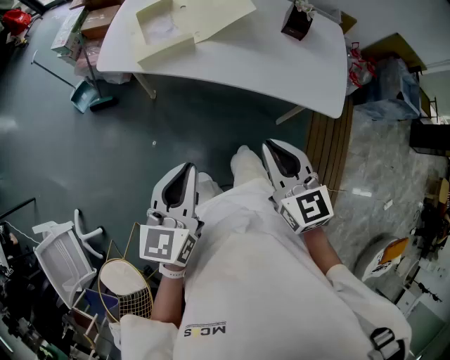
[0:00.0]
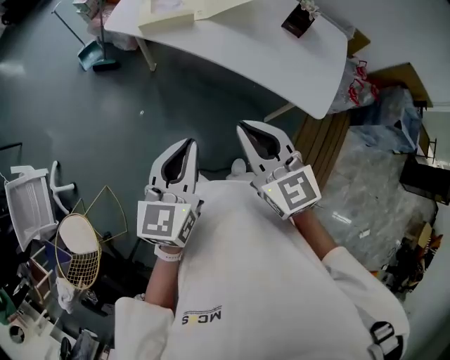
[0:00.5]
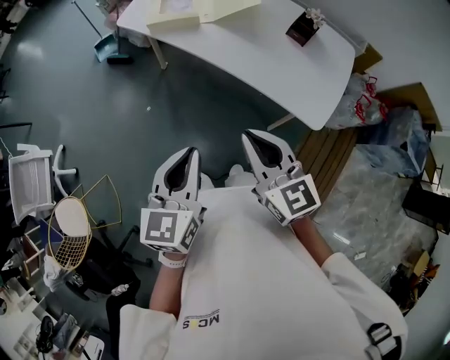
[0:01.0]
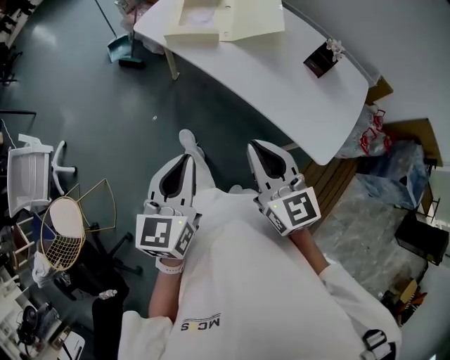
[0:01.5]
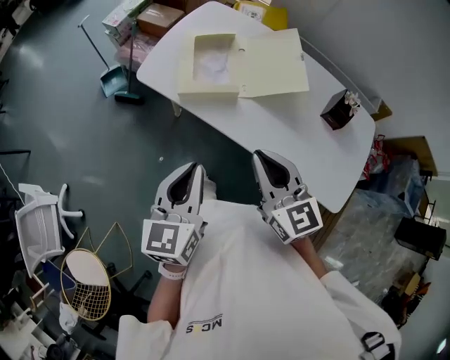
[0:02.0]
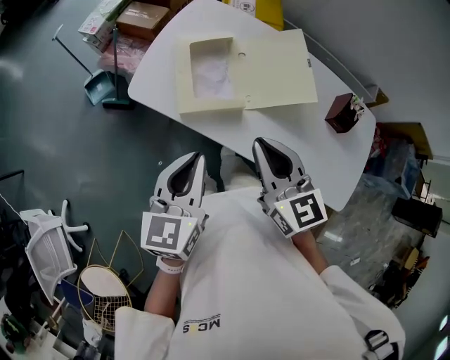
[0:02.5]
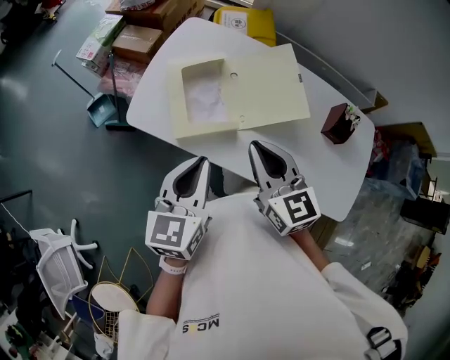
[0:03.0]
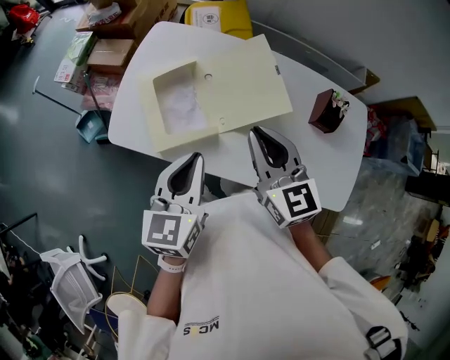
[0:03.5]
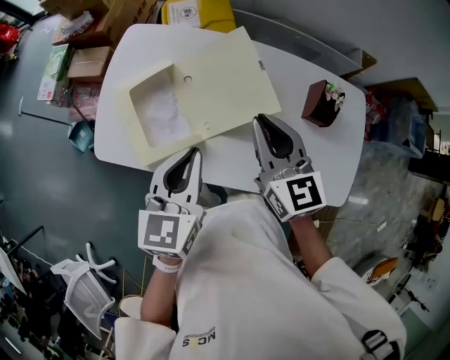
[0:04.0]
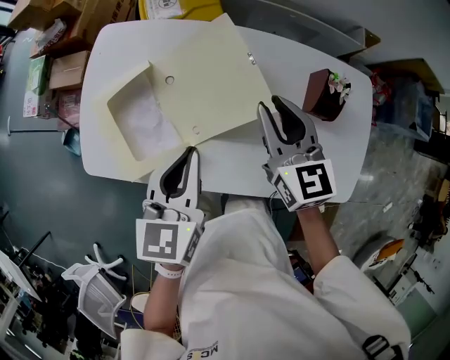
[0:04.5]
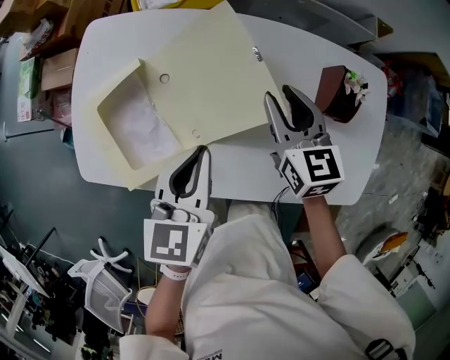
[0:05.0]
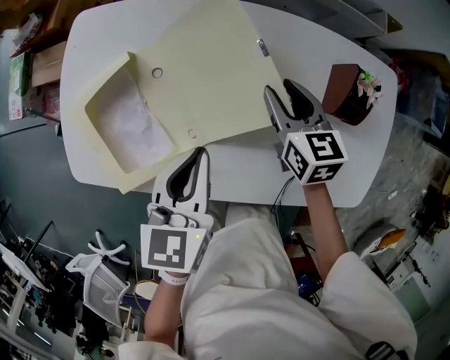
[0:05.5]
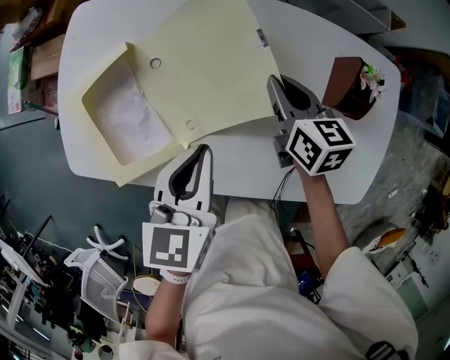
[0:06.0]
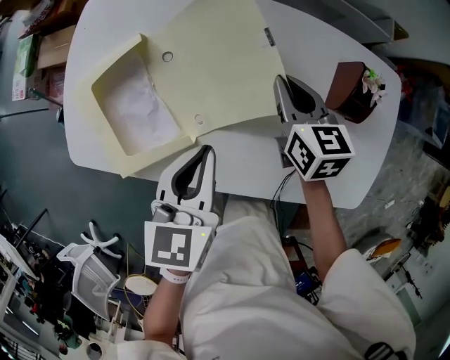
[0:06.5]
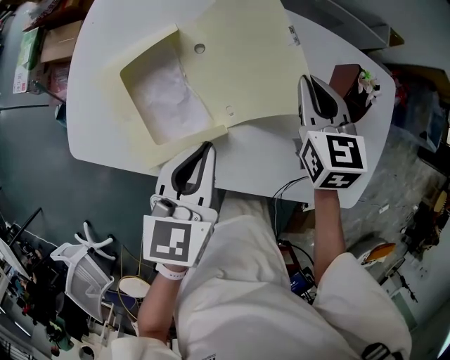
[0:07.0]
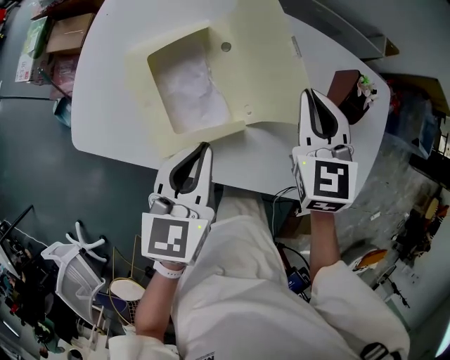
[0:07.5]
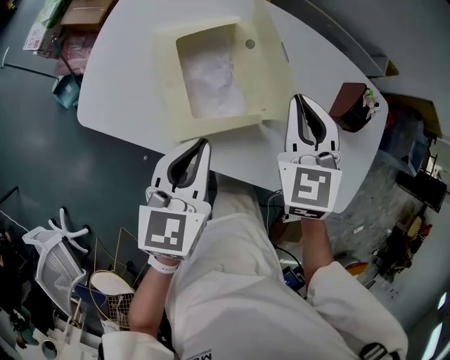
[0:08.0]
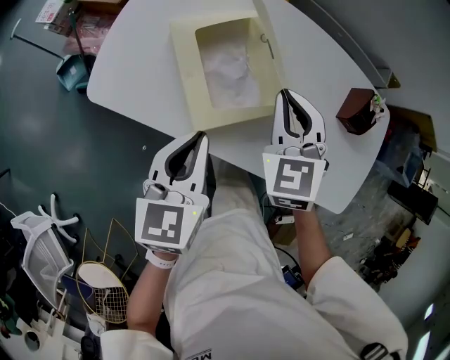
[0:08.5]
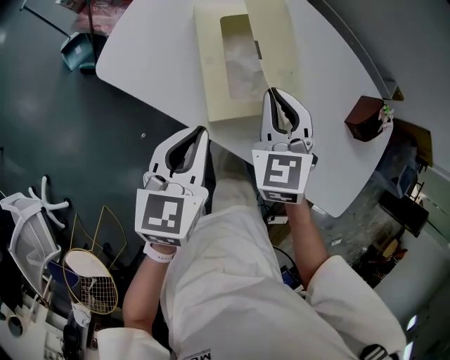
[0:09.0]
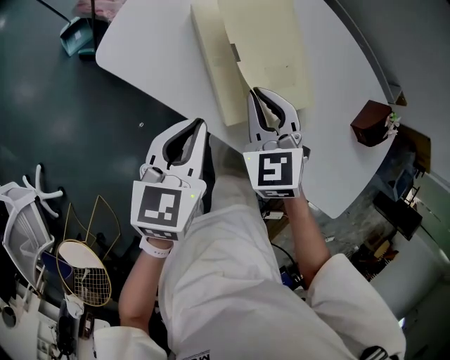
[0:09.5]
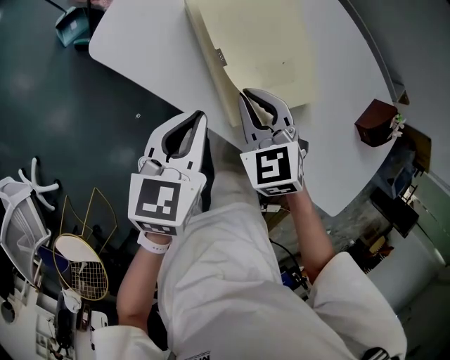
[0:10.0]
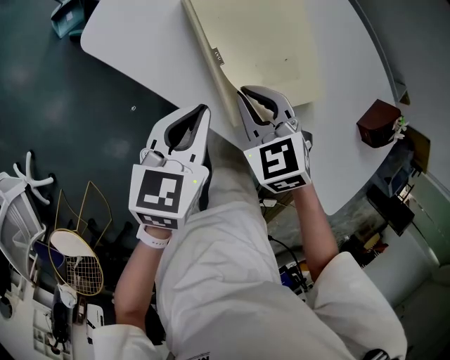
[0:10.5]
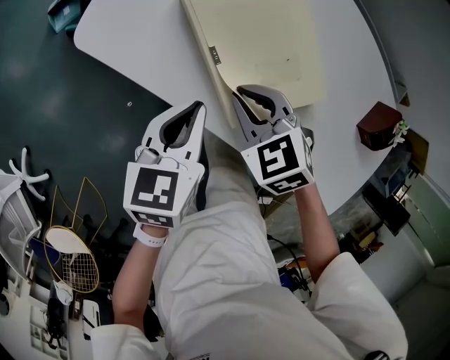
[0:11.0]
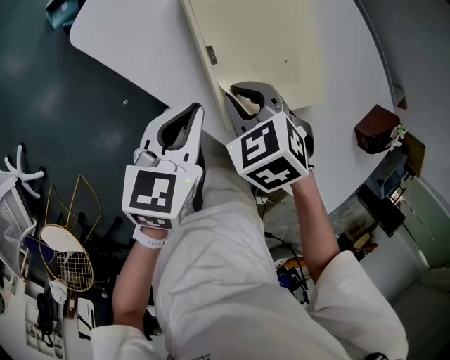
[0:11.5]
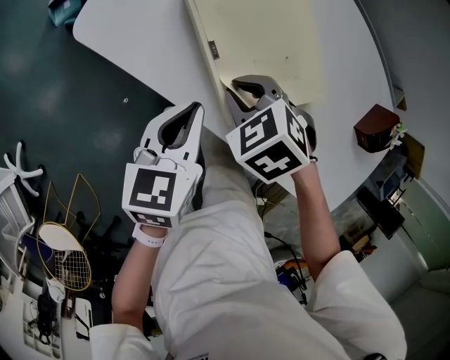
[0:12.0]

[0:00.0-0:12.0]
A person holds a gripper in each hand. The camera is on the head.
0:00.0 to 0:02.0: The right gripper ends up about 20 cm from where it was. Meanwhile the left gripper ends up some 20 cm from where it was.
0:02.0 to 0:04.0: The two grippers go about 25 cm forward. The right gripper changes its angle by some 20 degrees, while the left gripper rotates some 20 degrees.
0:04.0 to 0:06.0: The right gripper travels downward and forward by some 25 cm, turns by some 30 degrees, and opens, then closes once more. Meanwhile the left gripper is displaced downward, to the right and forward by roughly 15 cm.
0:06.0 to 0:08.0: The right gripper travels upward, to the left and backward by approximately 20 cm, and rolls counterclockwise, seen from behind, by roughly 40 degrees, while the left gripper is displaced to the left and backward by about 10 cm.
0:08.0 to 0:10.0: The left gripper travels to the left and downward by about 15 cm. Meanwhile the right gripper moves to the left, downward and backward, roughly 25 cm, and turns by approximately 40 degrees.
0:10.0 to 0:12.0: The right gripper shifts by approximately 5 cm, and rotates approximately 30 degrees.

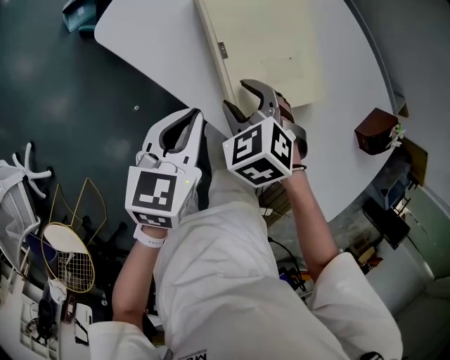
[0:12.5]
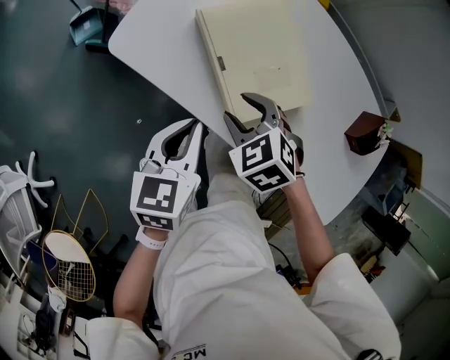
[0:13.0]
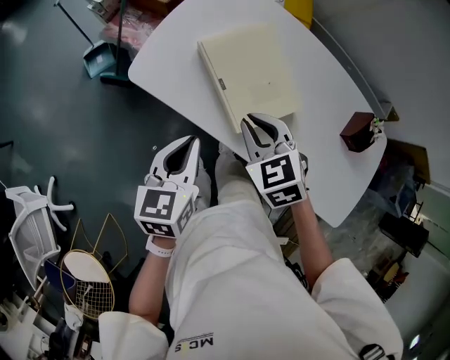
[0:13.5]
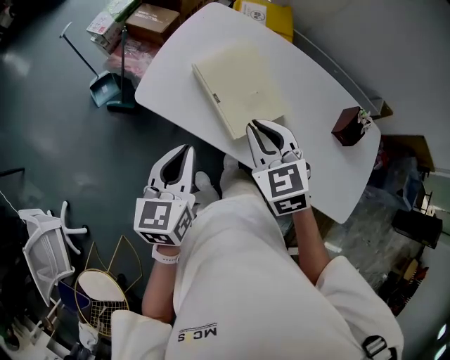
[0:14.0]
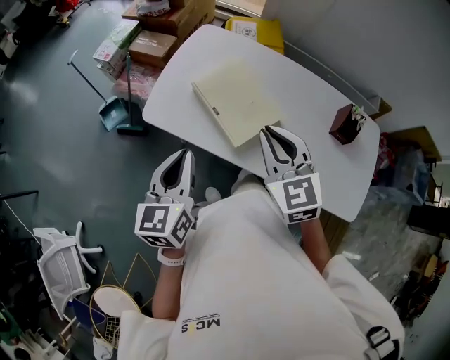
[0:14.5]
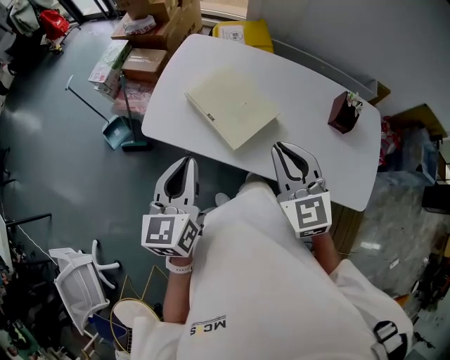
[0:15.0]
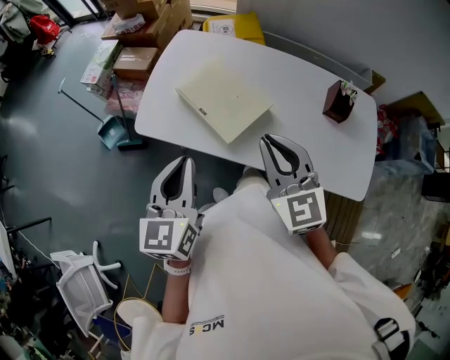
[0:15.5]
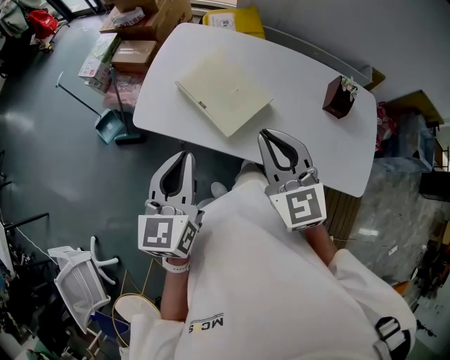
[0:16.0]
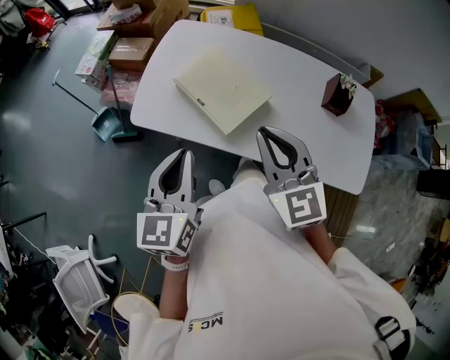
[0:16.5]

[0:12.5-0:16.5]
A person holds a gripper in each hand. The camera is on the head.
0:12.5 to 0:14.5: Both grippers travel together upward, approximately 25 cm. The right gripper tilts its fingers roughly 40 degrees upward, and closes up. The left gripper swivels roughly 20 degrees.
0:14.5 to 0:16.5: The left gripper changes place by some 5 cm; the right gripper ends up roughly 5 cm from where it was.

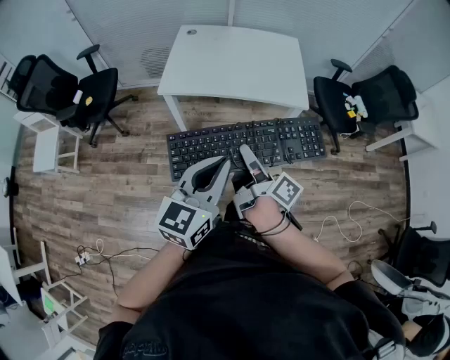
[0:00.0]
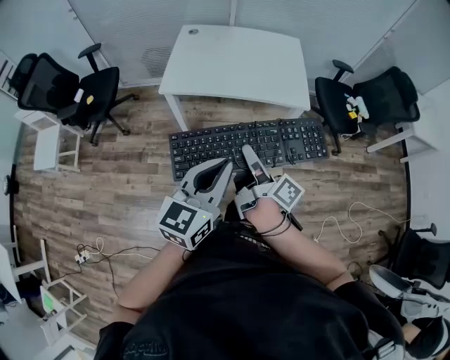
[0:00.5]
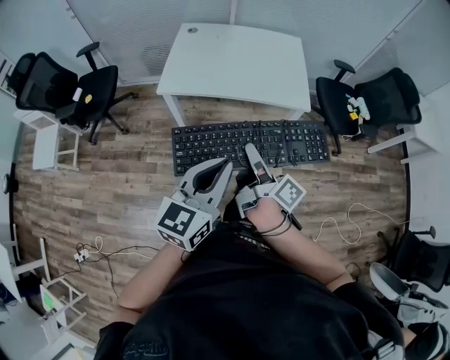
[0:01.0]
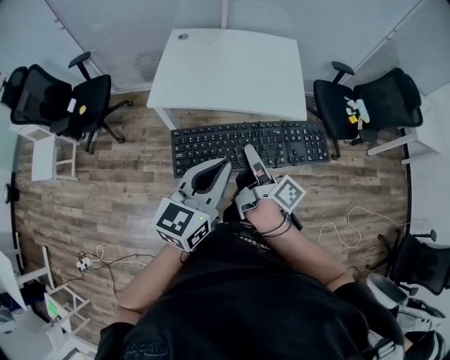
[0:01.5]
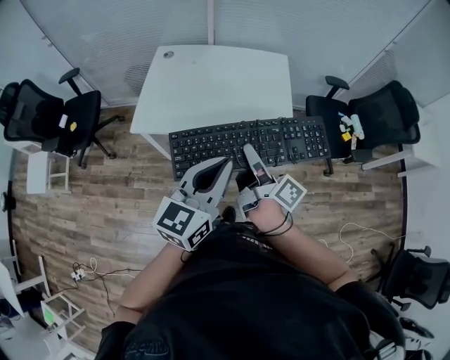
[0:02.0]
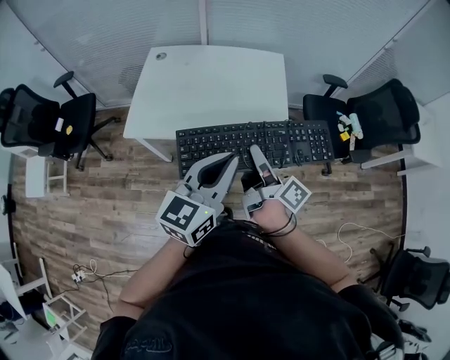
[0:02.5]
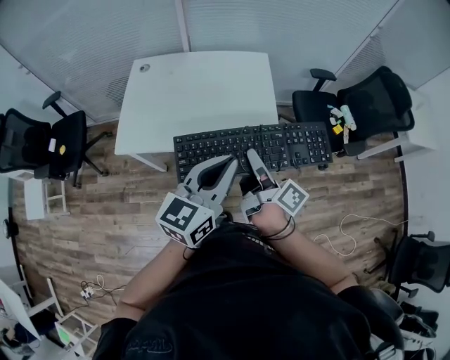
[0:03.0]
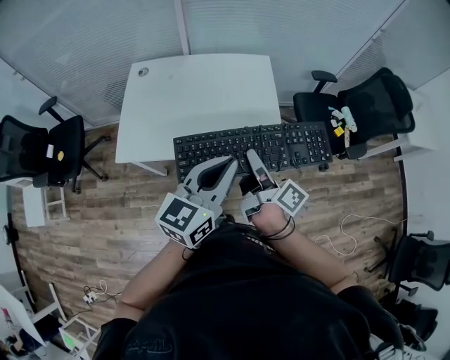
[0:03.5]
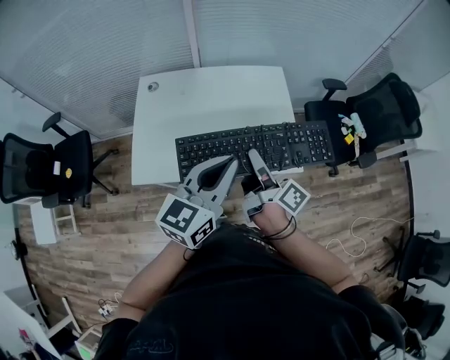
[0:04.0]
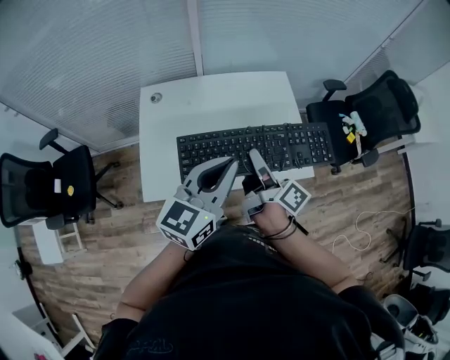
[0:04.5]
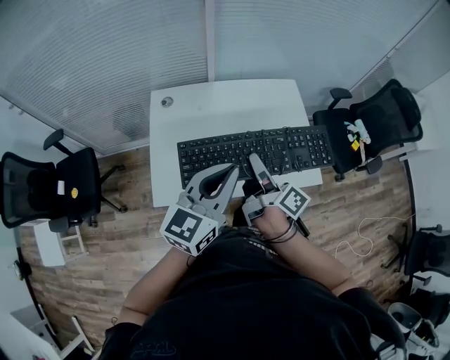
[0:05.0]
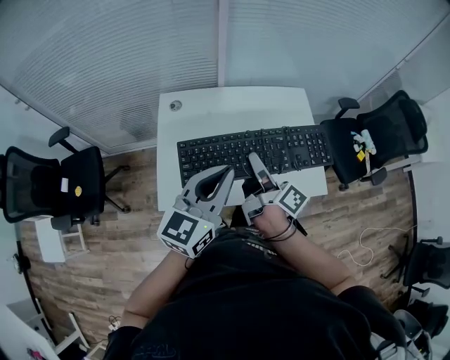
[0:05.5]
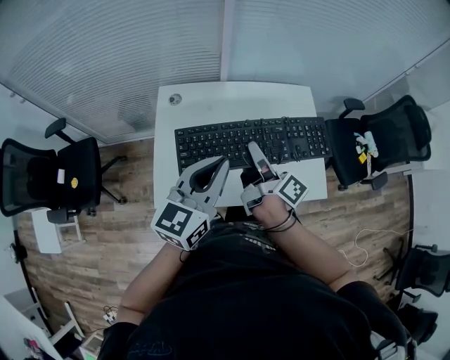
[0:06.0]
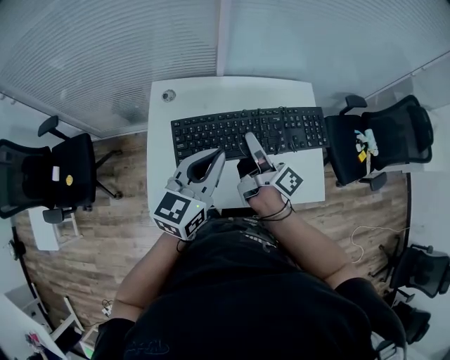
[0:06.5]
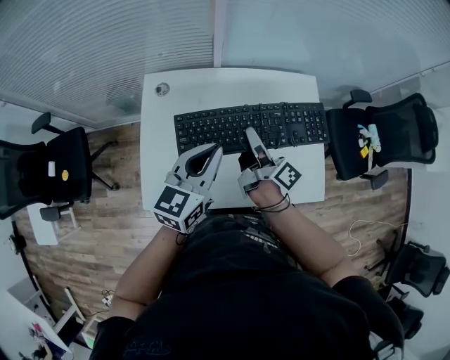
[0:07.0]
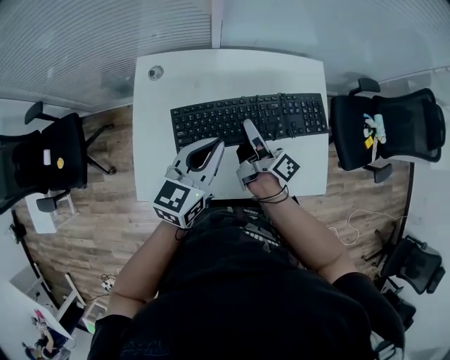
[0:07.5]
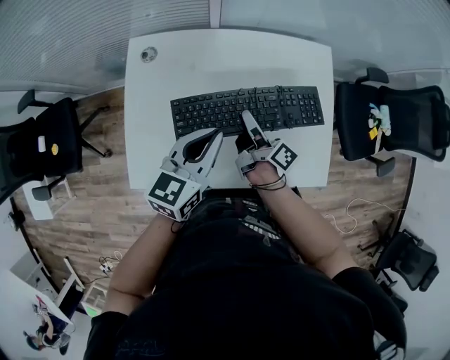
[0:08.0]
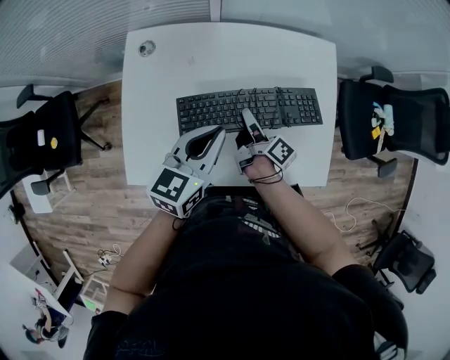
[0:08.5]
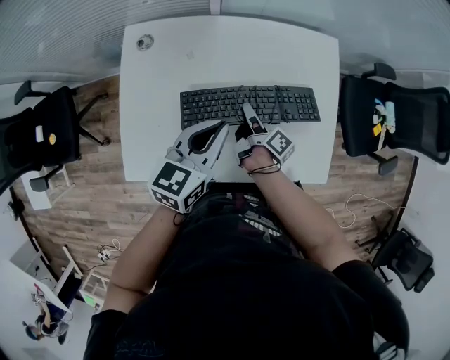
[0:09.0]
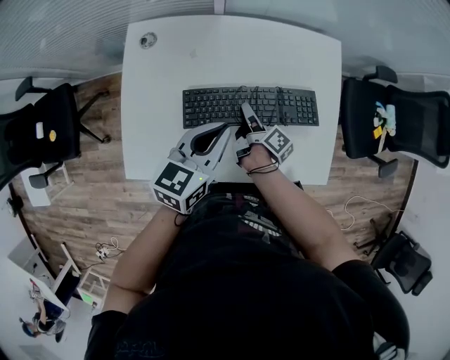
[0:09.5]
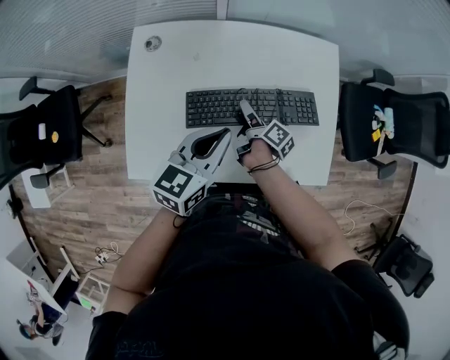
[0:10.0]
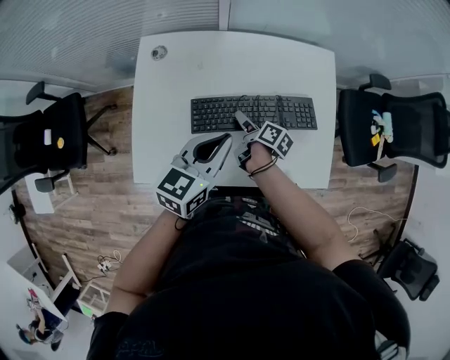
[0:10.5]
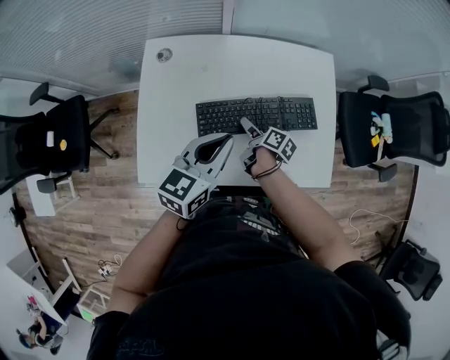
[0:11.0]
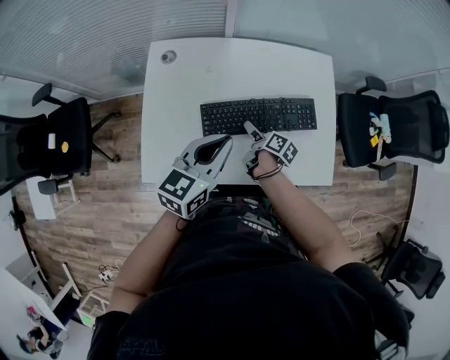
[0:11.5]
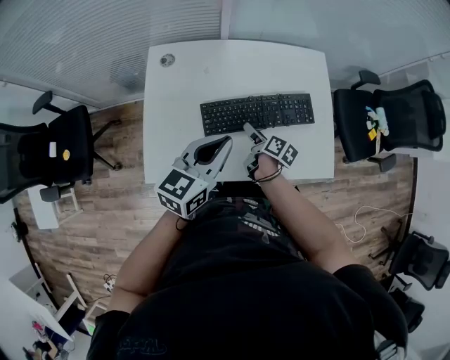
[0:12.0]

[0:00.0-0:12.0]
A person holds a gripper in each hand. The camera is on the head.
0:00.0 to 0:02.0: Both grippers travel together forward and to the right, approximately 25 cm.
0:02.0 to 0:04.0: Both grippers travel together forward, some 15 cm.
0:04.0 to 0:06.0: The two grippers go some 20 cm to the left and forward.
0:06.0 to 0:08.0: Both grippers move downward and forward, roughly 20 cm.
0:08.0 to 0:10.0: The right gripper travels downward by roughly 10 cm, swivels some 20 degrees, and opens up.
0:10.0 to 0:12.0: The two grippers go some 5 cm backward.
